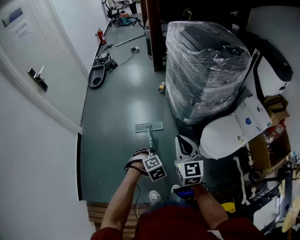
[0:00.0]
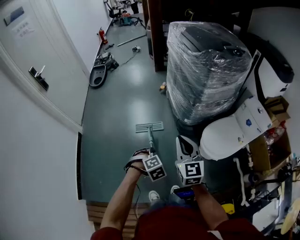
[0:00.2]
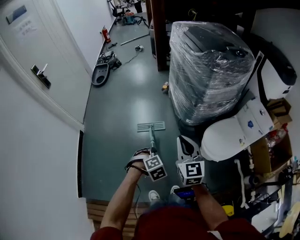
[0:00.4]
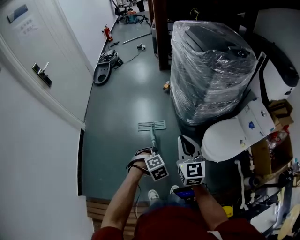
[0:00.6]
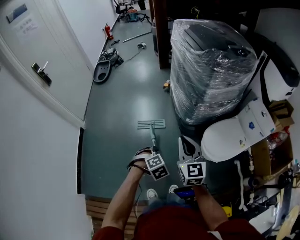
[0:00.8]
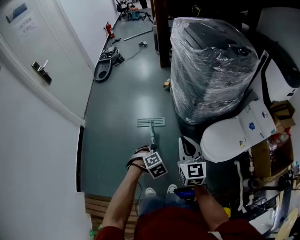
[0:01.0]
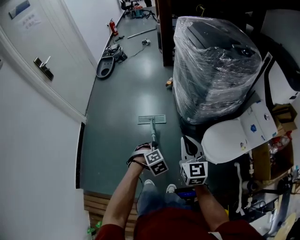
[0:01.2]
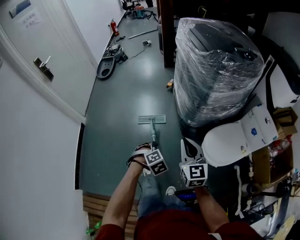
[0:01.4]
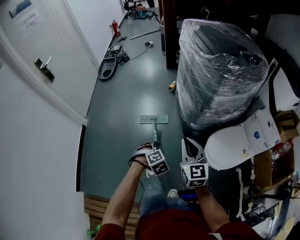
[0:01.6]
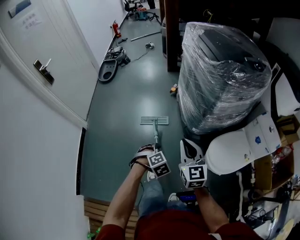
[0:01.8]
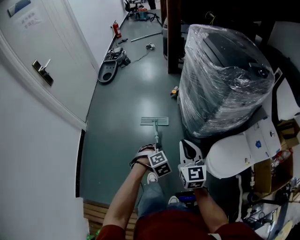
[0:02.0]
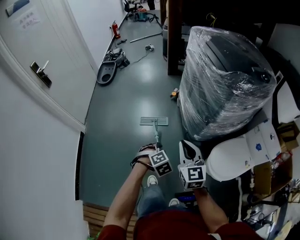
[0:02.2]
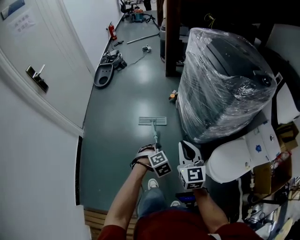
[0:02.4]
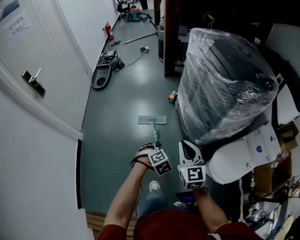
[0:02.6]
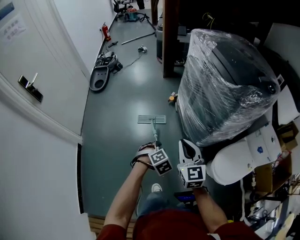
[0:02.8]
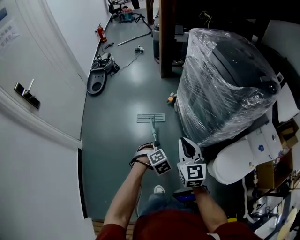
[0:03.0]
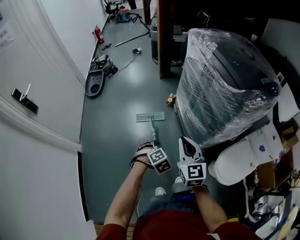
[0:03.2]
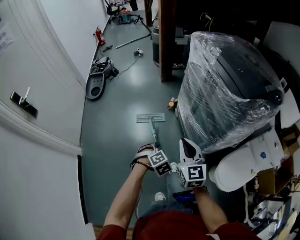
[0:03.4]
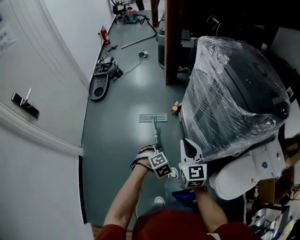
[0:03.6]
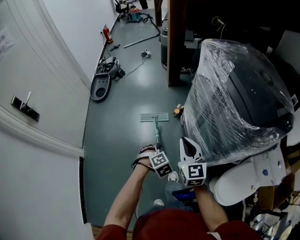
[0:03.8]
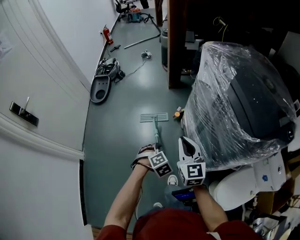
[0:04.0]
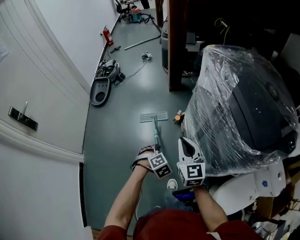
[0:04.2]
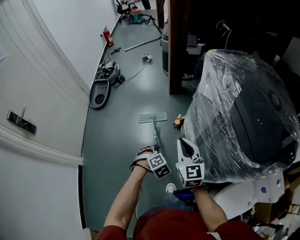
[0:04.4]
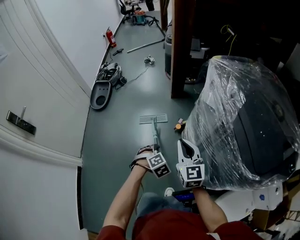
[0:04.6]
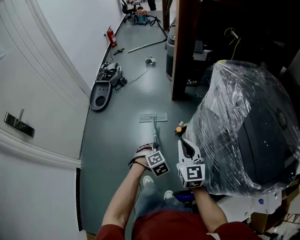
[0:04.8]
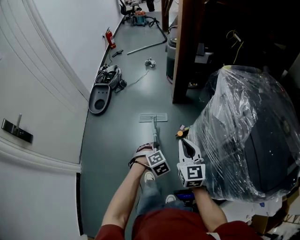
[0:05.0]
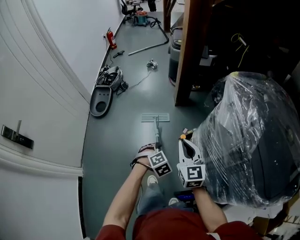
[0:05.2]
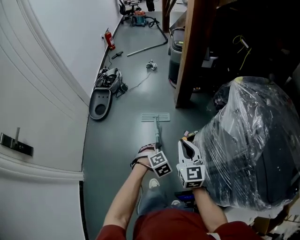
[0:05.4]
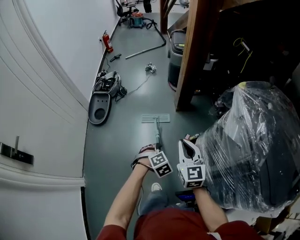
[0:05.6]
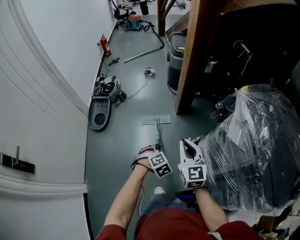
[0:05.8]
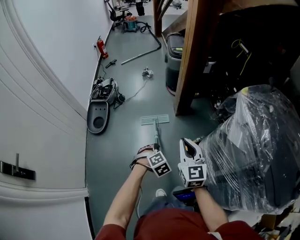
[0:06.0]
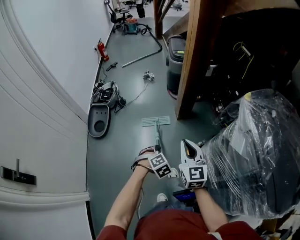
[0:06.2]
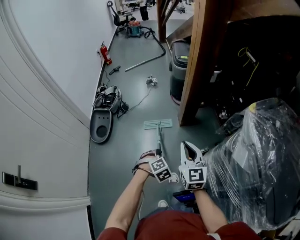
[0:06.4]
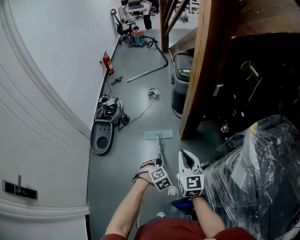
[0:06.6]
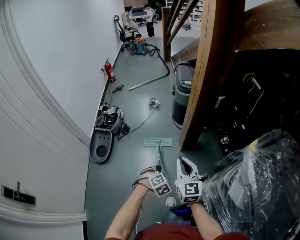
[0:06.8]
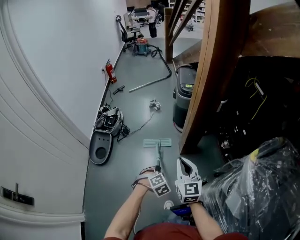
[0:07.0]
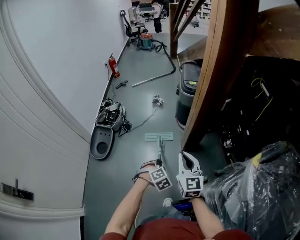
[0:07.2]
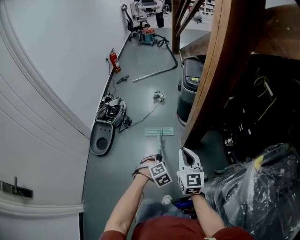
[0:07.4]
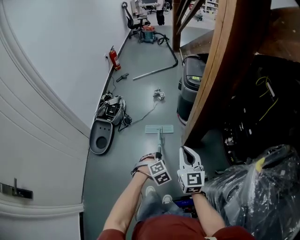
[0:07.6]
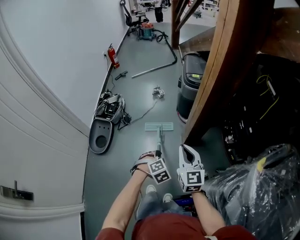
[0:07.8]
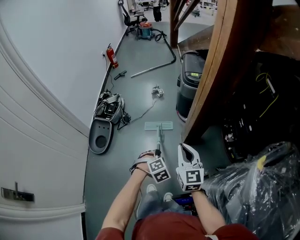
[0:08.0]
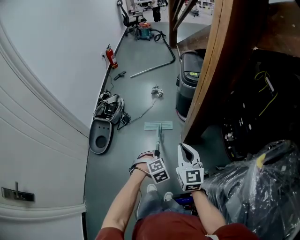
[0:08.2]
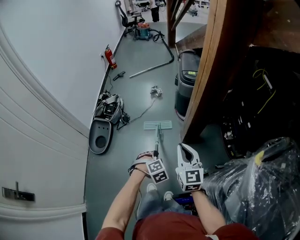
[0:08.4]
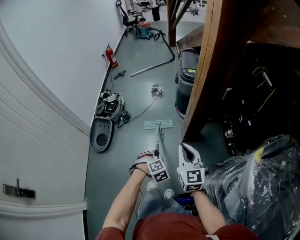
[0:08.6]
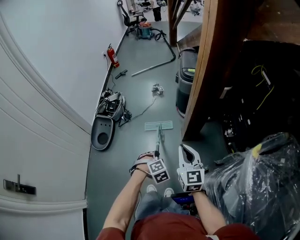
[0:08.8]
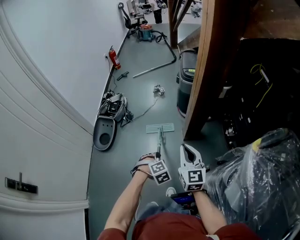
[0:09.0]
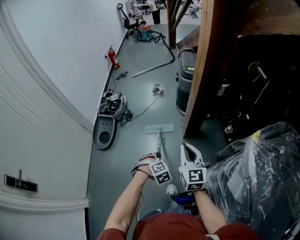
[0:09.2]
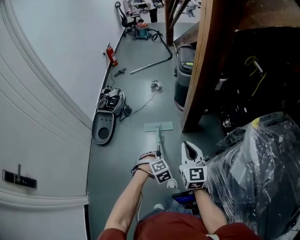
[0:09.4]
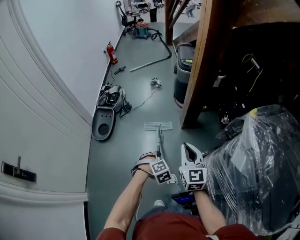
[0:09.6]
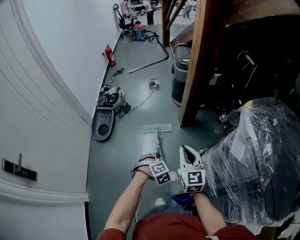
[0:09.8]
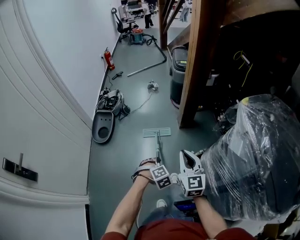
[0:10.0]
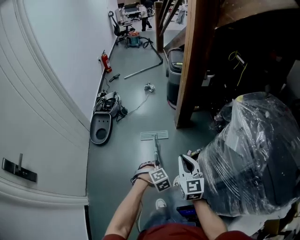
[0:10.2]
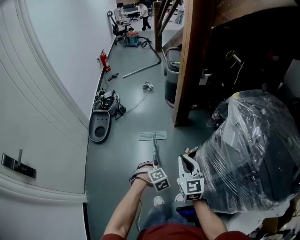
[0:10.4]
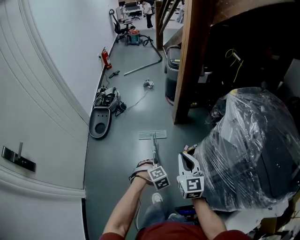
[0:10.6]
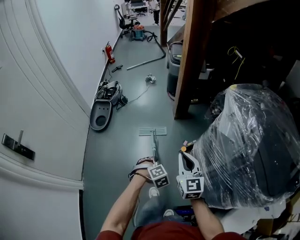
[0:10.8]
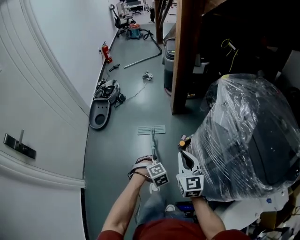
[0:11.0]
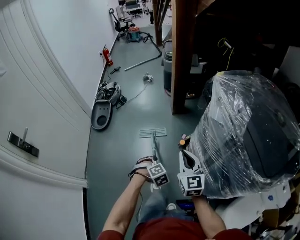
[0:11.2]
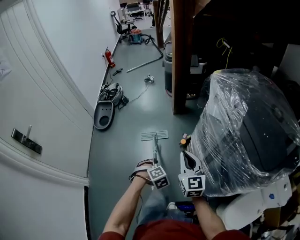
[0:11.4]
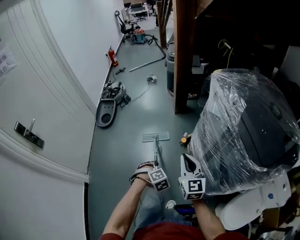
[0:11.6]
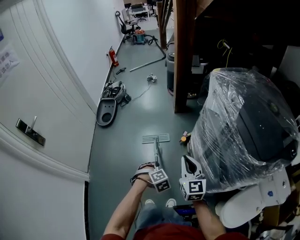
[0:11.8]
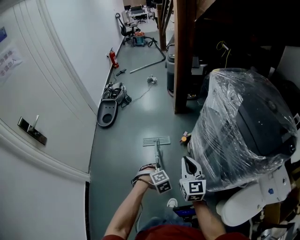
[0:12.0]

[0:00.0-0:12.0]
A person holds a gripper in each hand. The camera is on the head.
0:00.0 to 0:01.6: The right gripper moves some 10 cm.
0:01.6 to 0:03.0: The right gripper shifts by approximately 30 cm.
0:03.0 to 0:04.4: The right gripper ends up about 35 cm from where it was.
0:04.4 to 0:06.0: The right gripper changes place by about 35 cm.
0:06.0 to 0:07.6: The right gripper ends up some 35 cm from where it was.
0:07.6 to 0:09.0: The right gripper ends up approximately 10 cm from where it was.
0:09.0 to 0:10.4: The right gripper shifts by about 35 cm.
0:10.4 to 0:12.0: The right gripper moves some 30 cm.

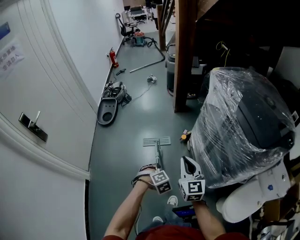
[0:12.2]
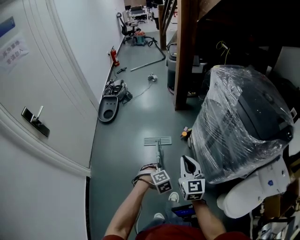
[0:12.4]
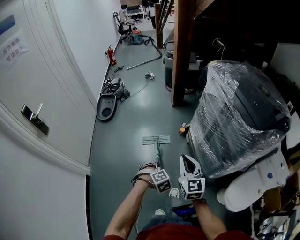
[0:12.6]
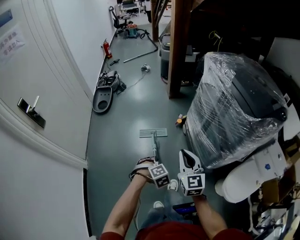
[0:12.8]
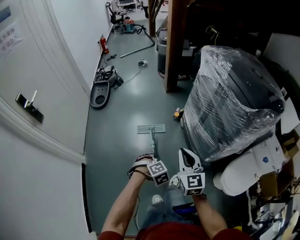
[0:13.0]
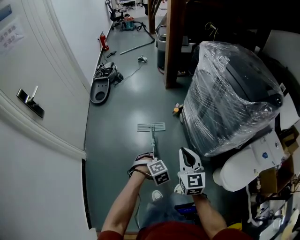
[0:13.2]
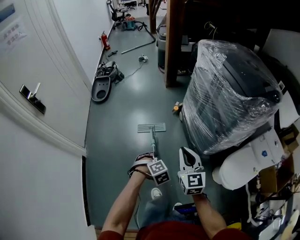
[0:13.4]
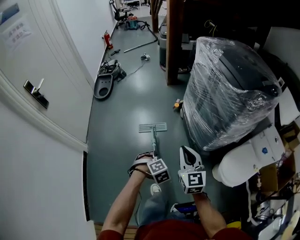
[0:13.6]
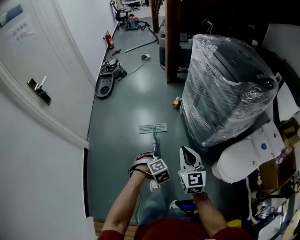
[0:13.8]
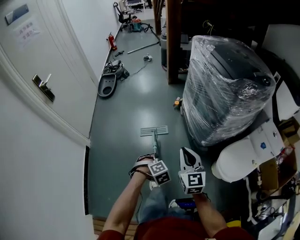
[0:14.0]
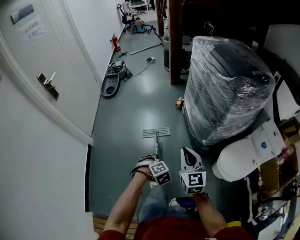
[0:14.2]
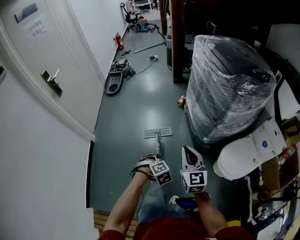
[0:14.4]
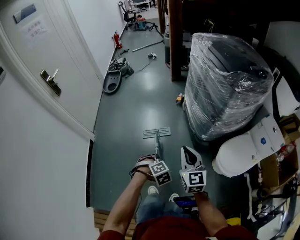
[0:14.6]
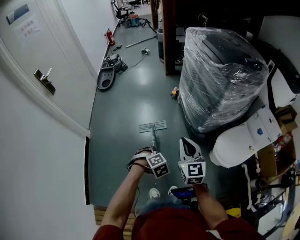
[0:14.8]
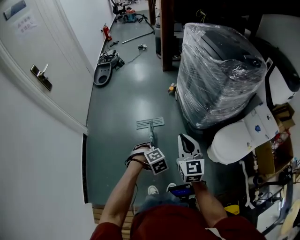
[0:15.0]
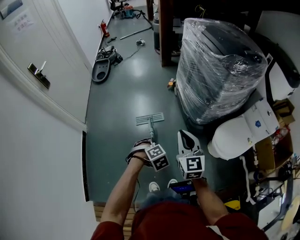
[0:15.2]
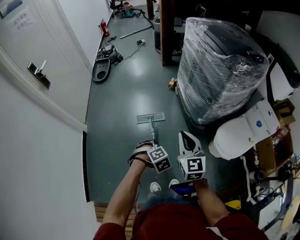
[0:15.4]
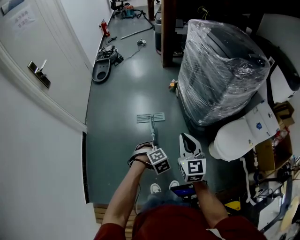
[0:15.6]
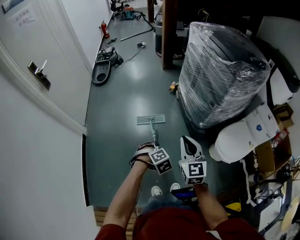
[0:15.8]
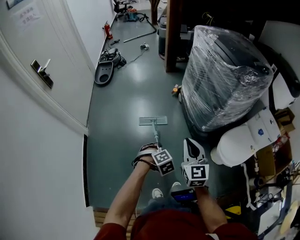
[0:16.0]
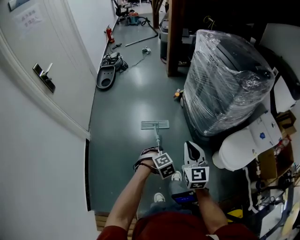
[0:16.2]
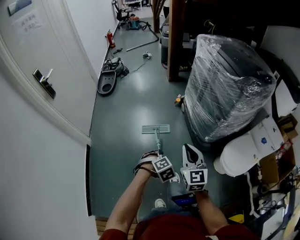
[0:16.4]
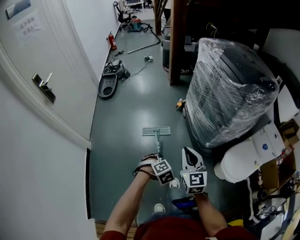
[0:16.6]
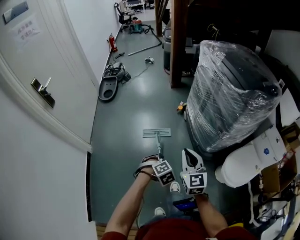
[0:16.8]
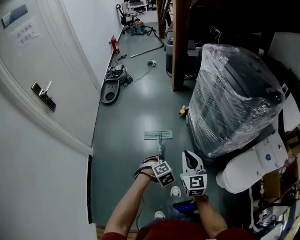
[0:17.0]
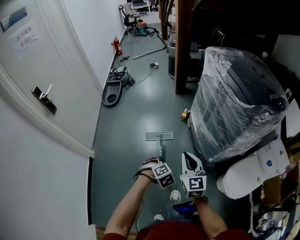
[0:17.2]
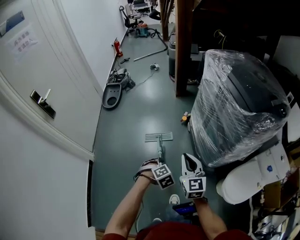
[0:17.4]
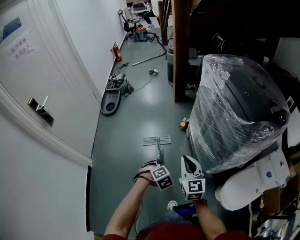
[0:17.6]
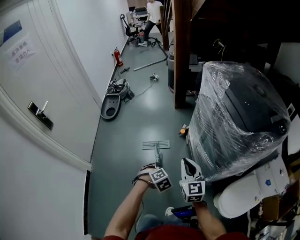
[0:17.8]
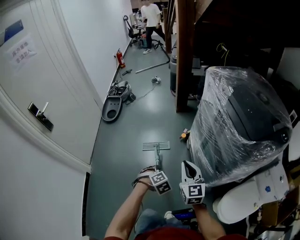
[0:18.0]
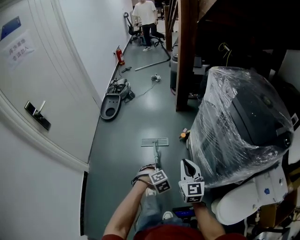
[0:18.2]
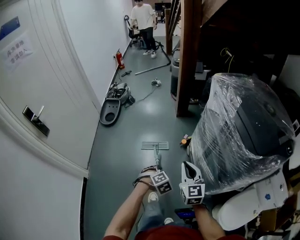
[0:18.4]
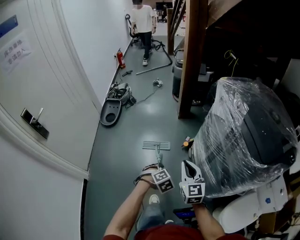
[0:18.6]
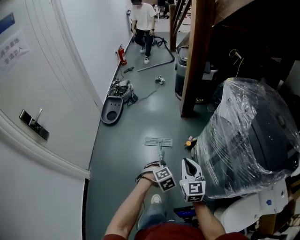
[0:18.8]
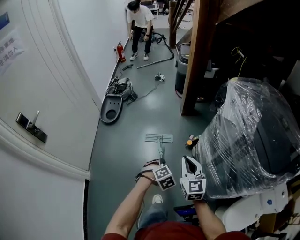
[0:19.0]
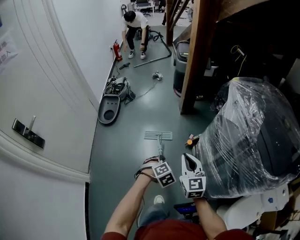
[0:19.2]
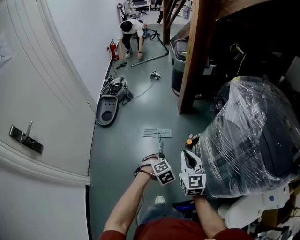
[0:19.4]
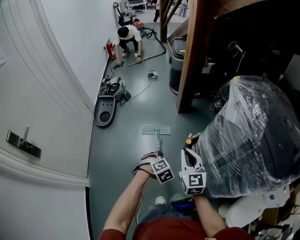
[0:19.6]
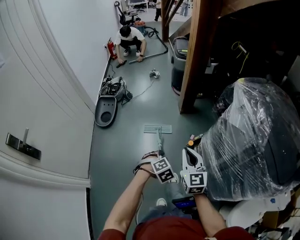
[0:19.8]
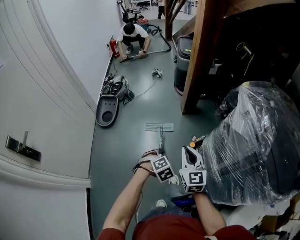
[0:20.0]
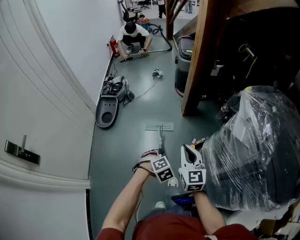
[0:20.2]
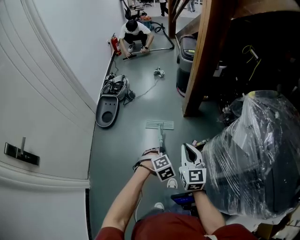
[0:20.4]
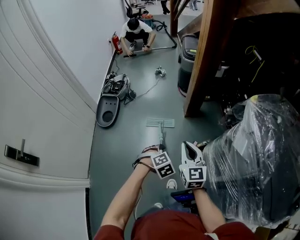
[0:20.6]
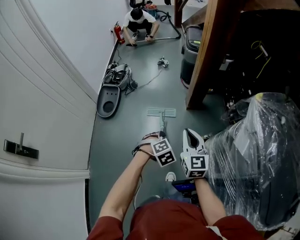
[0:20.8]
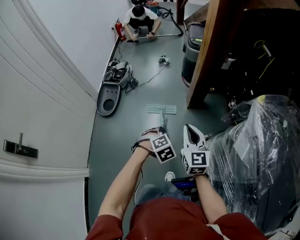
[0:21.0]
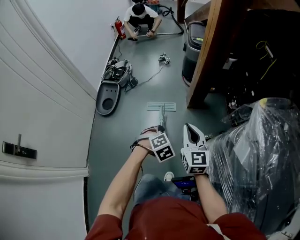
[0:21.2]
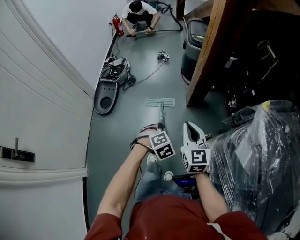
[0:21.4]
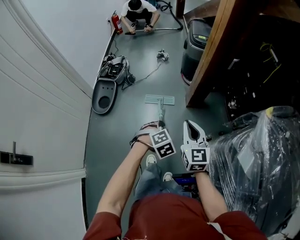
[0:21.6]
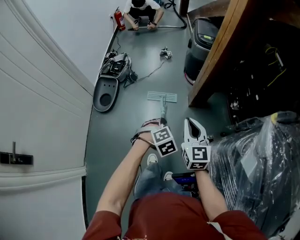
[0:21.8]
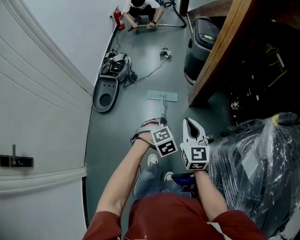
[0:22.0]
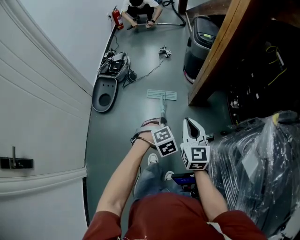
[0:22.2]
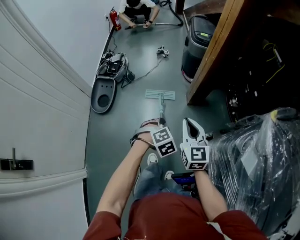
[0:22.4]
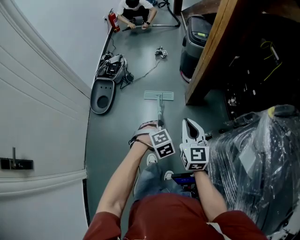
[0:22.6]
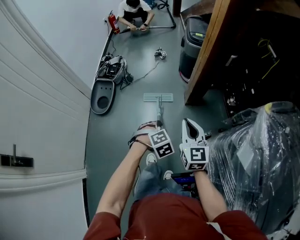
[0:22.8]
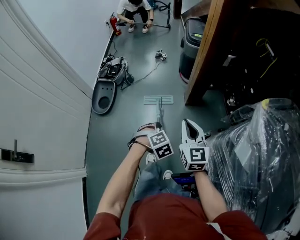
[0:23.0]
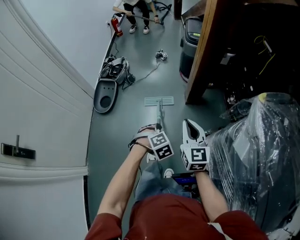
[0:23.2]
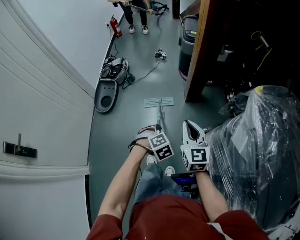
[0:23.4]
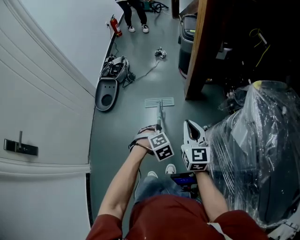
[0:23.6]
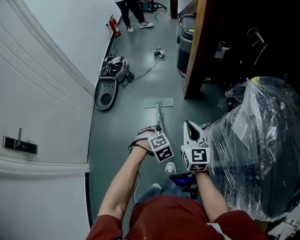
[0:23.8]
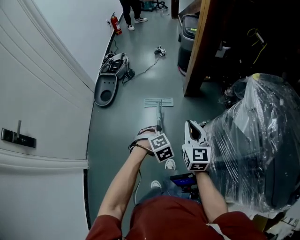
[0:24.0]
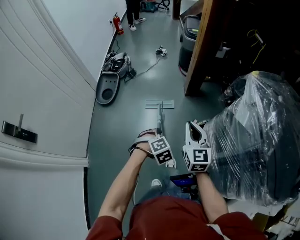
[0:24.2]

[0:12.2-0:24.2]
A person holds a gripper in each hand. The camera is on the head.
0:12.2 to 0:13.8: The right gripper ends up approximately 35 cm from where it was.
0:13.8 to 0:15.2: The right gripper ends up some 10 cm from where it was.
0:15.2 to 0:16.6: The right gripper moves approximately 10 cm.
0:16.6 to 0:18.2: The right gripper changes place by roughly 30 cm.
0:18.2 to 0:19.8: The right gripper ends up about 35 cm from where it was.
0:19.8 to 0:21.2: The right gripper ends up roughly 30 cm from where it was.
0:21.2 to 0:22.6: The right gripper ends up some 10 cm from where it was.
0:22.6 to 0:24.2: The right gripper changes place by some 25 cm.
